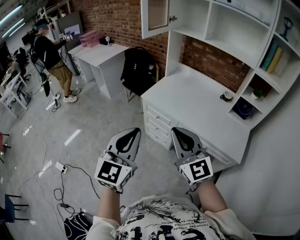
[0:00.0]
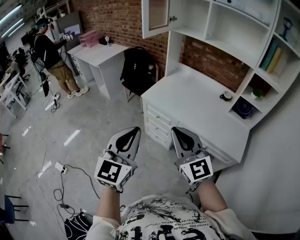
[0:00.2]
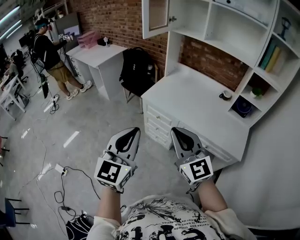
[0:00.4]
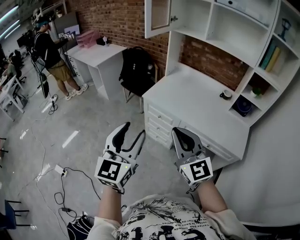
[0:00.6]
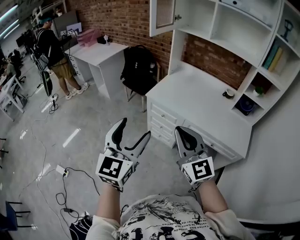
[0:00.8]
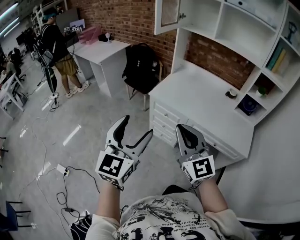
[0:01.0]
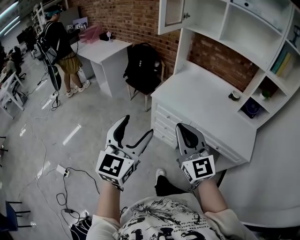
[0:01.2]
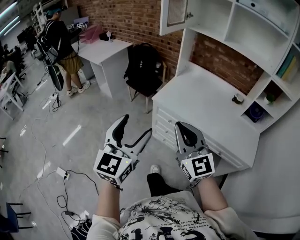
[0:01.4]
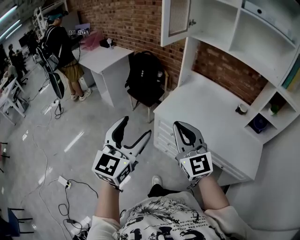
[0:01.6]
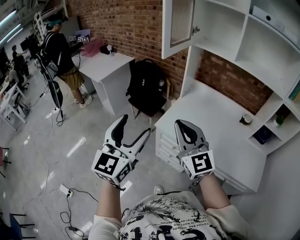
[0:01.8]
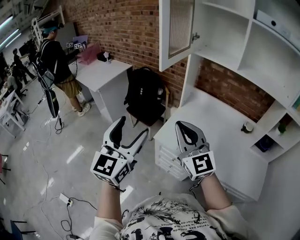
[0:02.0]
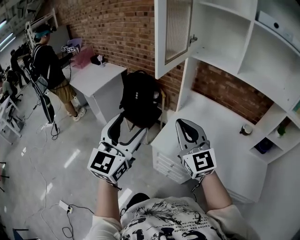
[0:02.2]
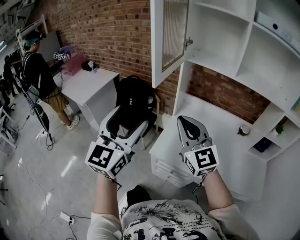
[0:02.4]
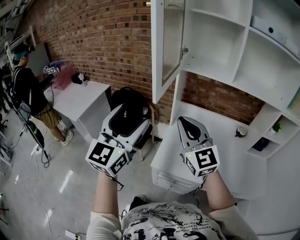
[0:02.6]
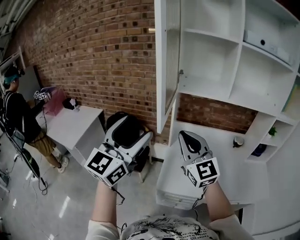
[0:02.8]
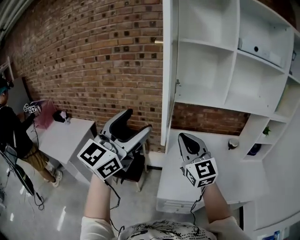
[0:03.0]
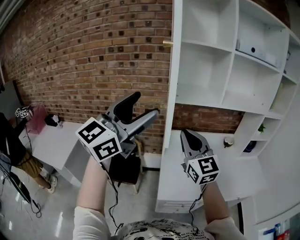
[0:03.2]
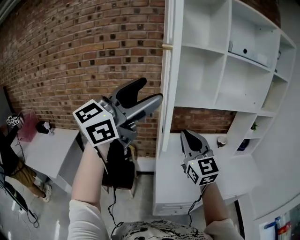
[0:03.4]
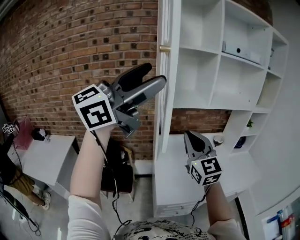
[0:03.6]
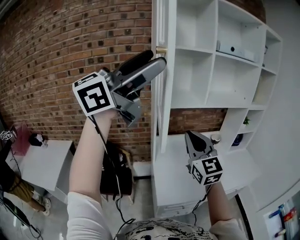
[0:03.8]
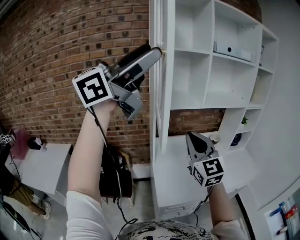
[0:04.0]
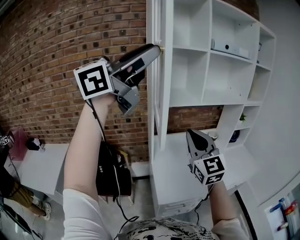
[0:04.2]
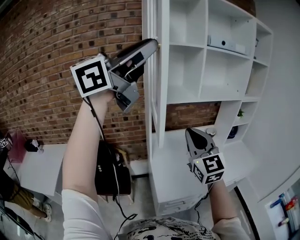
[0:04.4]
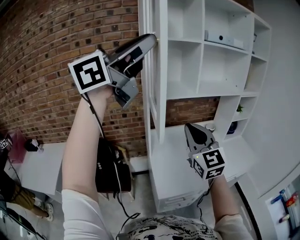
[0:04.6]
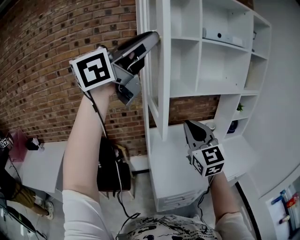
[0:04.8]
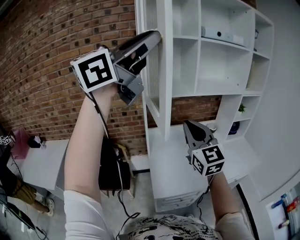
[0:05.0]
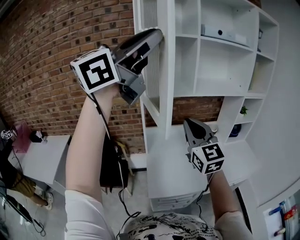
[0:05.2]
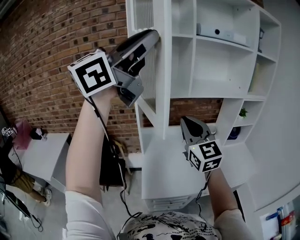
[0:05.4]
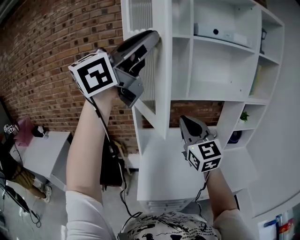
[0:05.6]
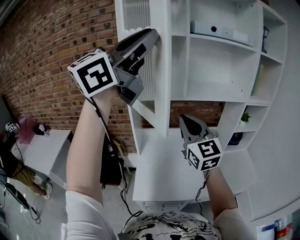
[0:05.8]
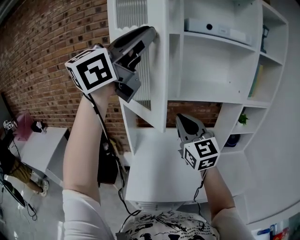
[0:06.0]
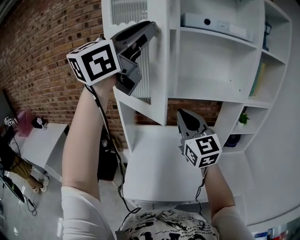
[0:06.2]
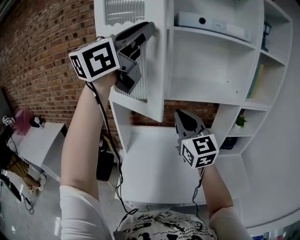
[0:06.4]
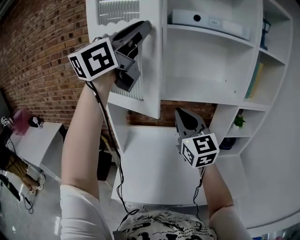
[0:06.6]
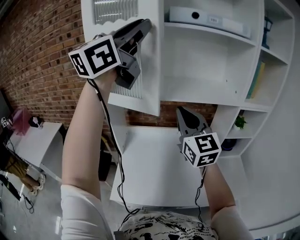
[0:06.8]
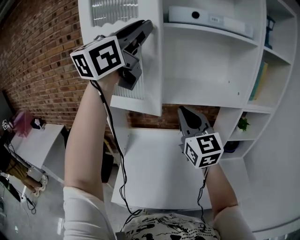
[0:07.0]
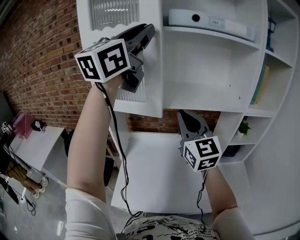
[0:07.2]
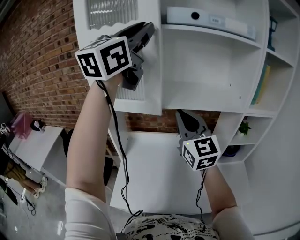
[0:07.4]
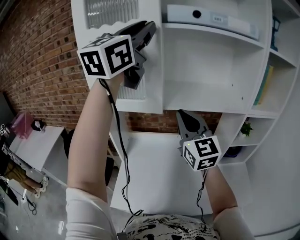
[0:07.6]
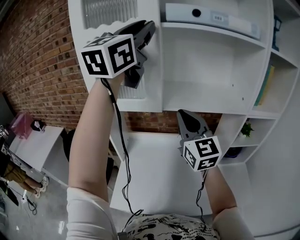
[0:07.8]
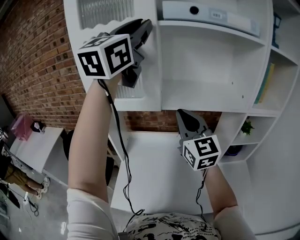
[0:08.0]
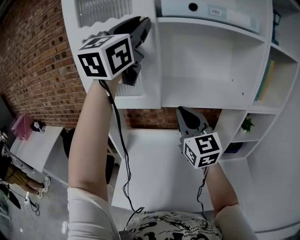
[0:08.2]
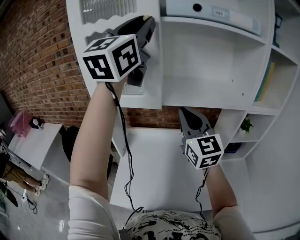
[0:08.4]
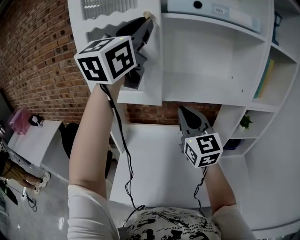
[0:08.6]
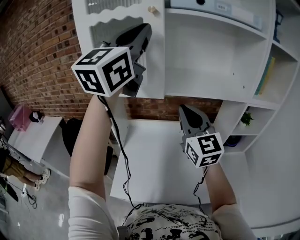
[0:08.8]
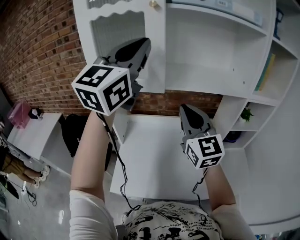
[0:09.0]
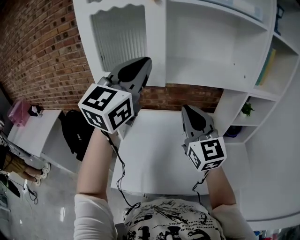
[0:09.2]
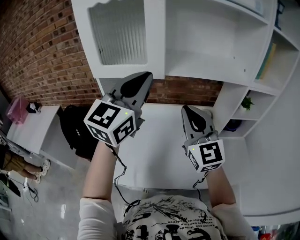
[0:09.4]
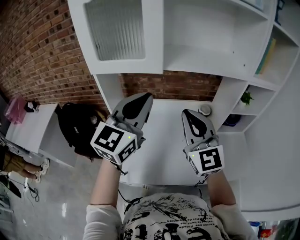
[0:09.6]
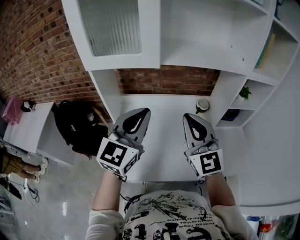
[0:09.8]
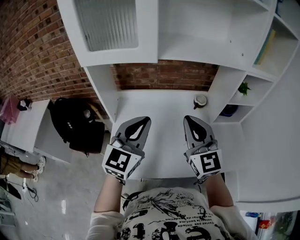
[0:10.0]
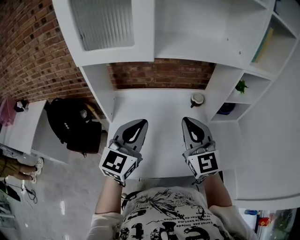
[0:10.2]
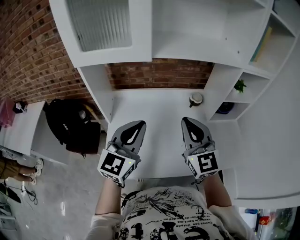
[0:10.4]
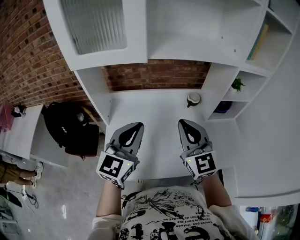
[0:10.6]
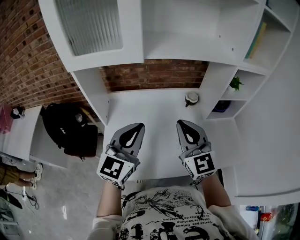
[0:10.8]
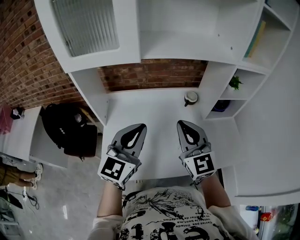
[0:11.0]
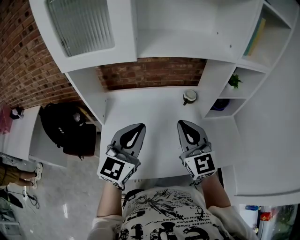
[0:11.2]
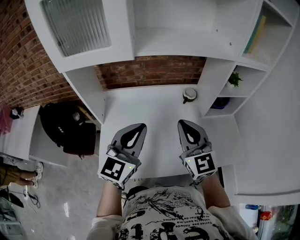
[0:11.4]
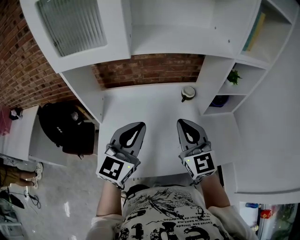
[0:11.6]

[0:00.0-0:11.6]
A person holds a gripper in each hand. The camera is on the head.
0:00.0 to 0:01.4: The grippers both shift to the left and forward by approximately 20 cm. The left gripper opens up.
0:01.4 to 0:02.8: The pair of grippers is taken some 50 cm. The right gripper changes its angle by approximately 20 degrees. The left gripper swivels approximately 30 degrees.
0:02.8 to 0:04.4: The left gripper moves upward, some 25 cm, changes its angle by roughly 60 degrees, and closes its fingers. The right gripper ends up roughly 5 cm from where it was, and swivels roughly 30 degrees.
0:04.4 to 0:05.8: The right gripper heads forward and to the right, covering roughly 20 cm; the left gripper heads to the right and forward, covering approximately 20 cm, and changes its angle by roughly 20 degrees.
0:05.8 to 0:07.2: Both grippers move forward and to the right, about 20 cm. The left gripper rotates about 20 degrees.
0:07.2 to 0:08.8: The left gripper shifts approximately 5 cm downward.
0:08.8 to 0:10.2: The left gripper moves downward, about 40 cm, and turns by roughly 30 degrees, while the right gripper heads downward and backward, covering about 15 cm.
0:10.2 to 0:11.6: The right gripper shifts by approximately 5 cm, while the left gripper travels to the right by approximately 5 cm.

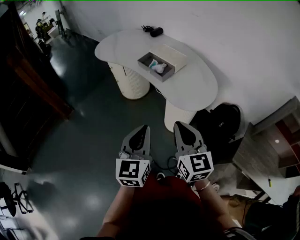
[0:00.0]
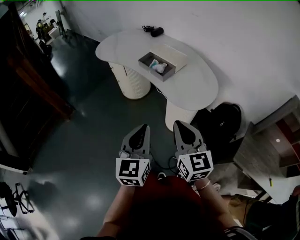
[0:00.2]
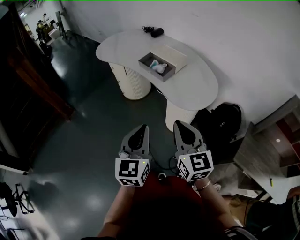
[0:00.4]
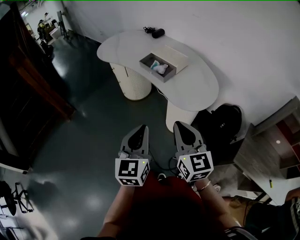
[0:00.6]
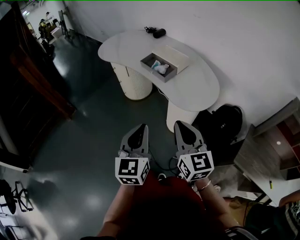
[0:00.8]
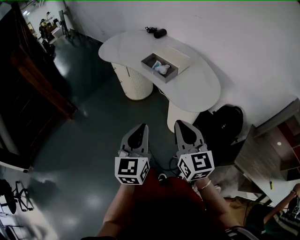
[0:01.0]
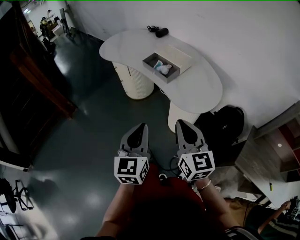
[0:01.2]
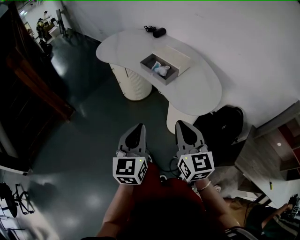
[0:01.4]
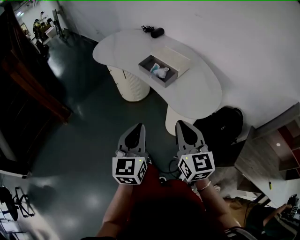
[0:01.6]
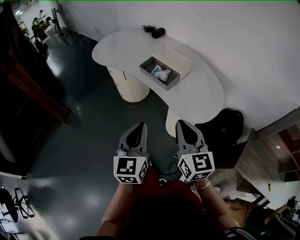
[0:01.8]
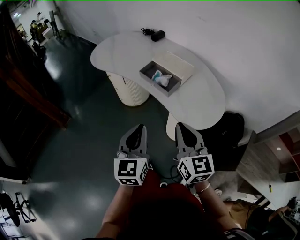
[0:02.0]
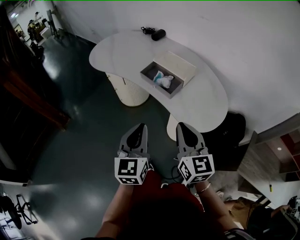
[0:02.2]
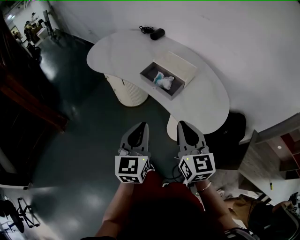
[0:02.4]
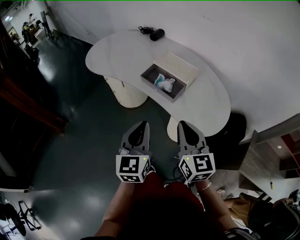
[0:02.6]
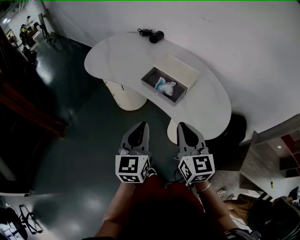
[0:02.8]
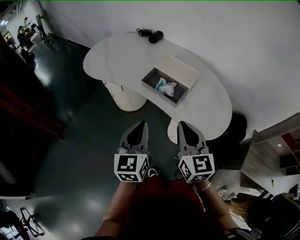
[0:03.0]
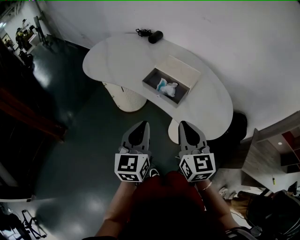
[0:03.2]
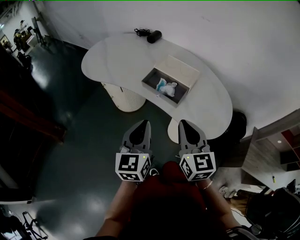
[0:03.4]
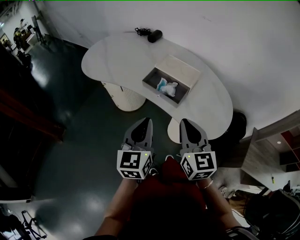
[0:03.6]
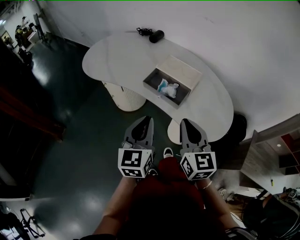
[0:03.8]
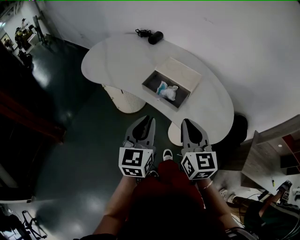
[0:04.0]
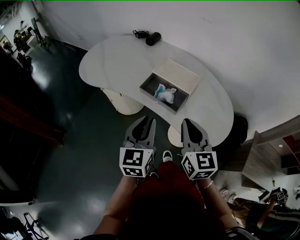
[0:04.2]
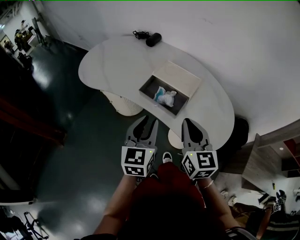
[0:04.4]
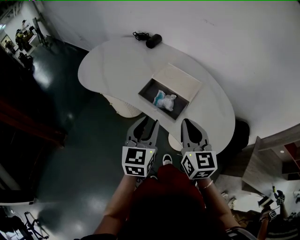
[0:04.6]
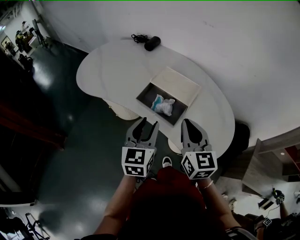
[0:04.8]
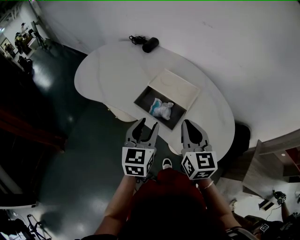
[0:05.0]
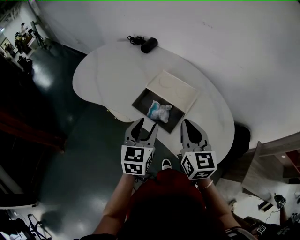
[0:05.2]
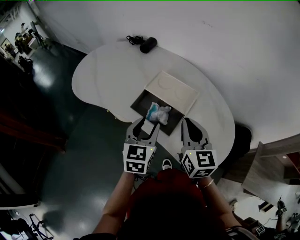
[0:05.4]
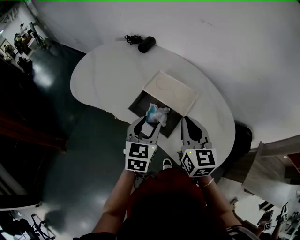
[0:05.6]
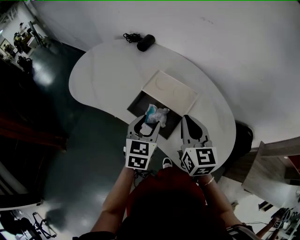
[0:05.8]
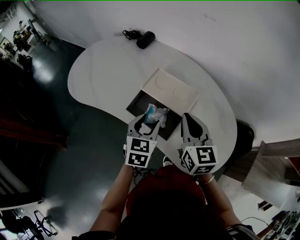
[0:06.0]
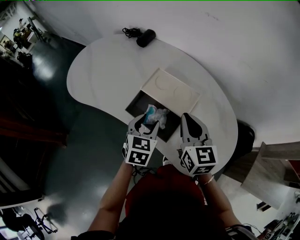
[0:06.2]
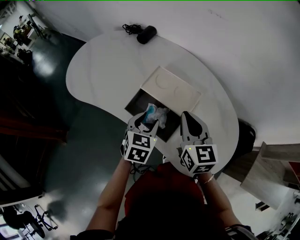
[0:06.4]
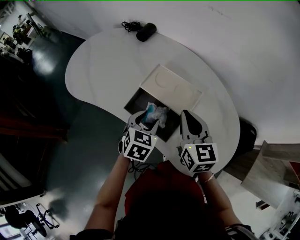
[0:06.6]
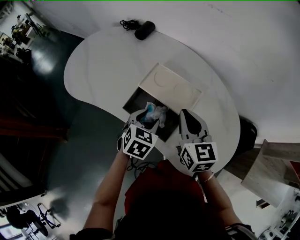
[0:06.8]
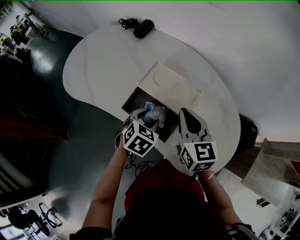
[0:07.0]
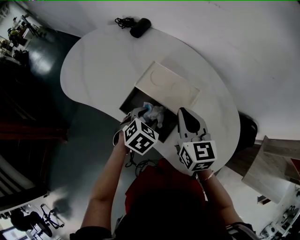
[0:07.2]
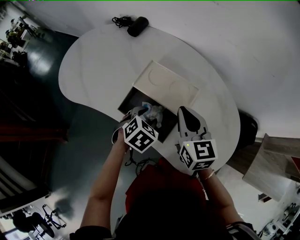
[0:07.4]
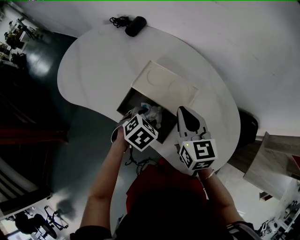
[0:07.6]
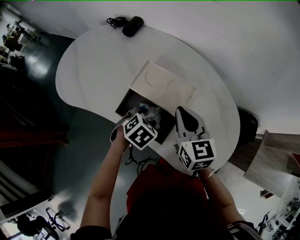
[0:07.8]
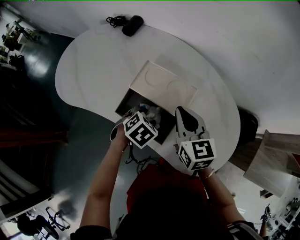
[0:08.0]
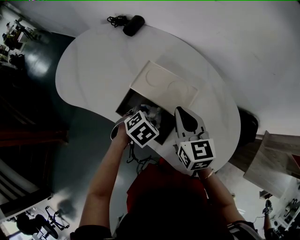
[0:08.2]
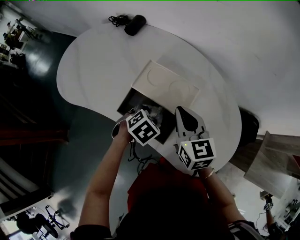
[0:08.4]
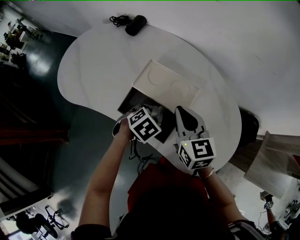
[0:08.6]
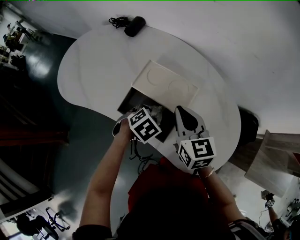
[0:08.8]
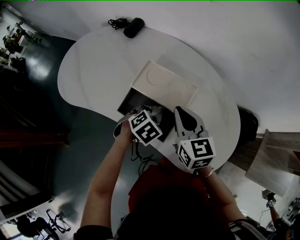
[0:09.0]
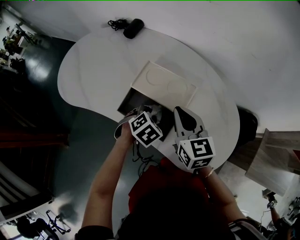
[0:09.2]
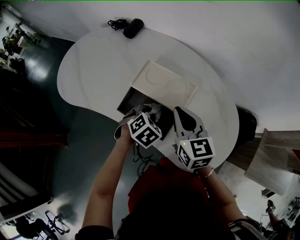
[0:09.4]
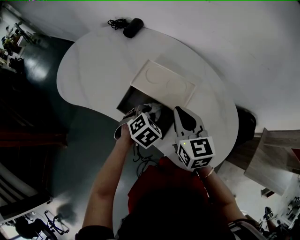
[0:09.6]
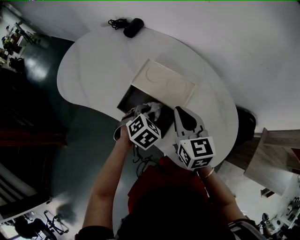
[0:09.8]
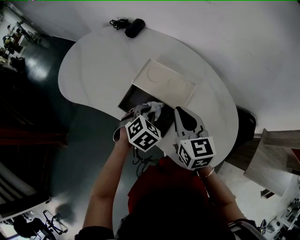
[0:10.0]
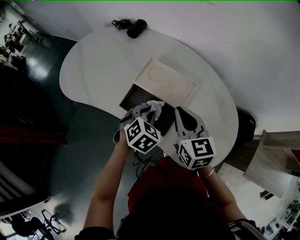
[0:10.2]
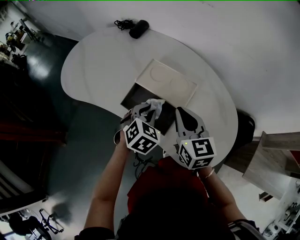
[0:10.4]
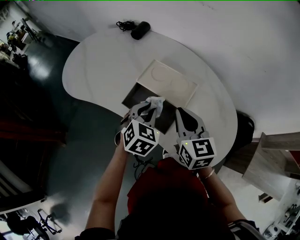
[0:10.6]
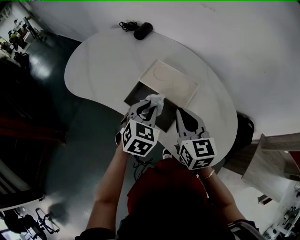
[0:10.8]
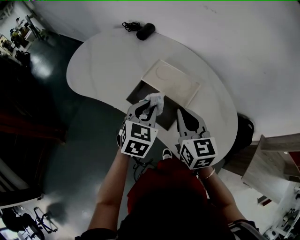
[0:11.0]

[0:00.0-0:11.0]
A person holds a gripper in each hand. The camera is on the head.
0:00.0 to 0:01.6: Both grippers move forward, approximately 5 cm.
0:01.6 to 0:03.2: The right gripper moves forward and to the left, roughly 15 cm. Meanwhile the left gripper travels forward by about 15 cm.
0:03.2 to 0:04.8: Both grippers move forward, some 10 cm. The left gripper opens.
0:04.8 to 0:06.2: The left gripper goes about 15 cm forward and downward, and turns by approximately 20 degrees. The right gripper heads forward, covering approximately 10 cm.
0:06.2 to 0:07.8: The left gripper moves downward, roughly 10 cm, and tilts its fingers some 30 degrees downward.
0:07.8 to 0:09.4: The left gripper closes.
0:09.4 to 0:11.0: The right gripper changes place by roughly 5 cm; the left gripper heads upward, covering about 15 cm, and angles its fingers upward, by some 30 degrees.

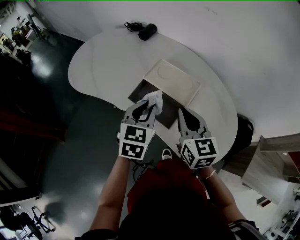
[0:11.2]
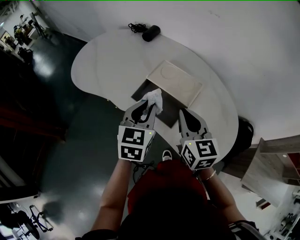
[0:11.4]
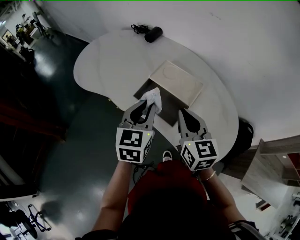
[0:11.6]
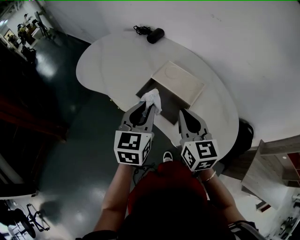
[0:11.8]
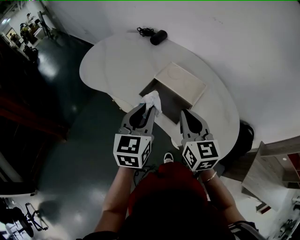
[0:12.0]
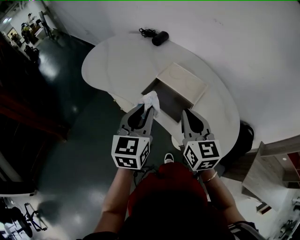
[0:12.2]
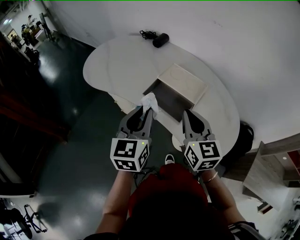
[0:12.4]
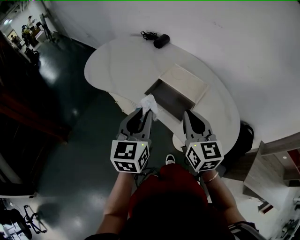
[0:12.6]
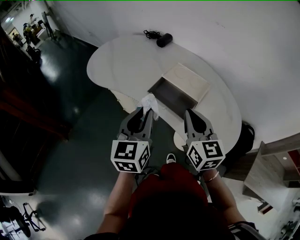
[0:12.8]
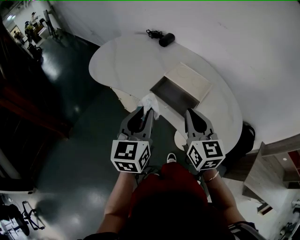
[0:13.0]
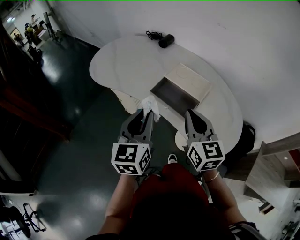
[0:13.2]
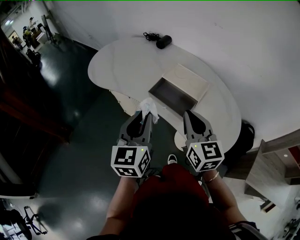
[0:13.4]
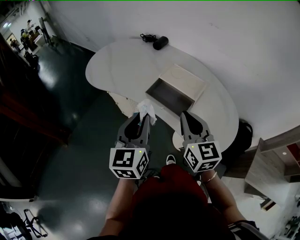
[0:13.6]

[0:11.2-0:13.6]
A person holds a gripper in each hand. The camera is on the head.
0:11.2 to 0:12.4: The left gripper heads backward, to the left and upward, covering approximately 15 cm, and swivels approximately 20 degrees; the right gripper heads backward, covering roughly 5 cm.
0:12.4 to 0:13.6: The left gripper heads backward, covering approximately 5 cm.
